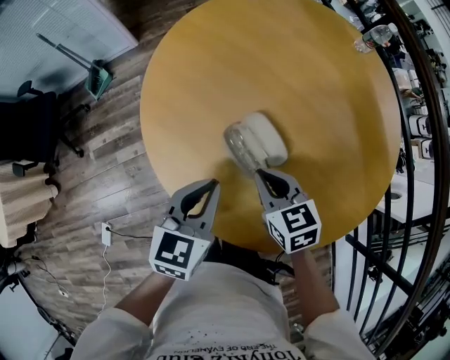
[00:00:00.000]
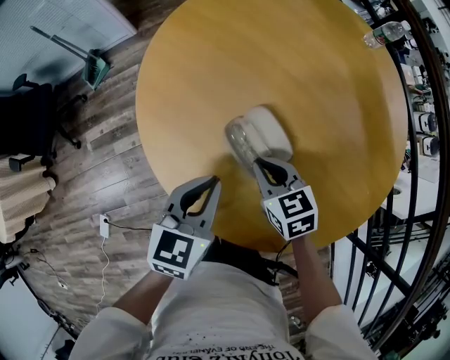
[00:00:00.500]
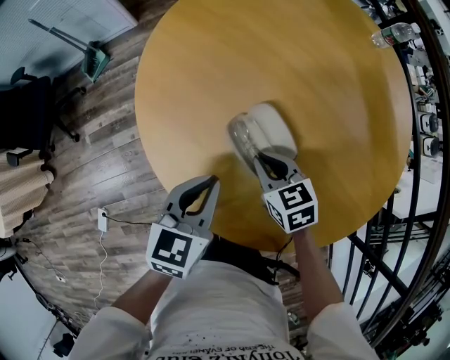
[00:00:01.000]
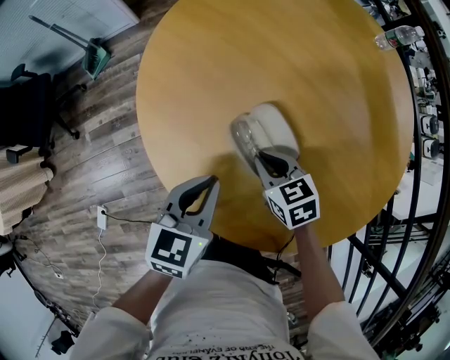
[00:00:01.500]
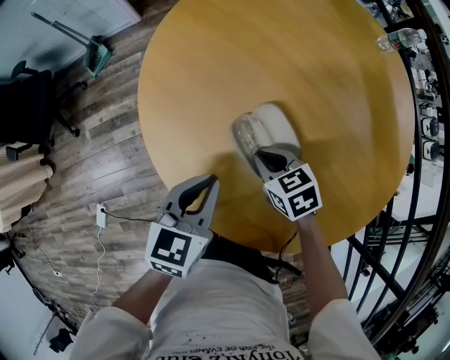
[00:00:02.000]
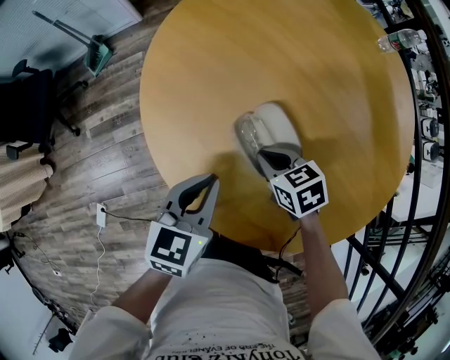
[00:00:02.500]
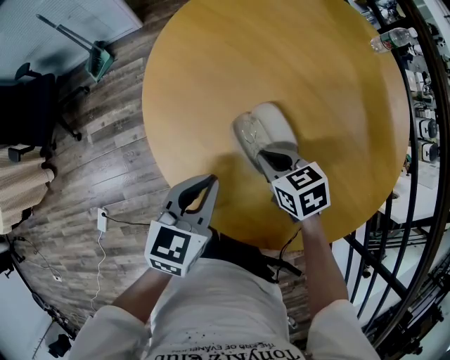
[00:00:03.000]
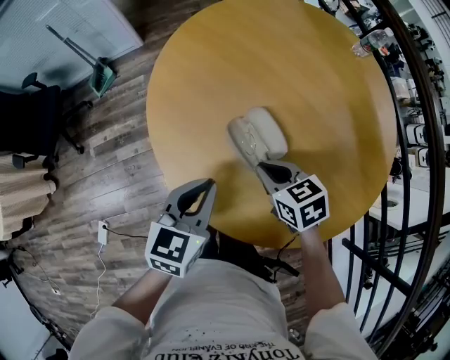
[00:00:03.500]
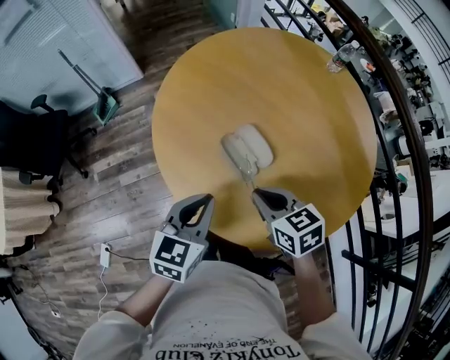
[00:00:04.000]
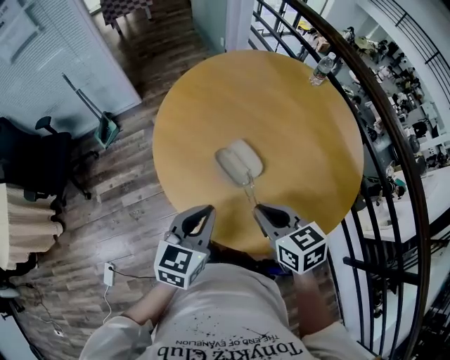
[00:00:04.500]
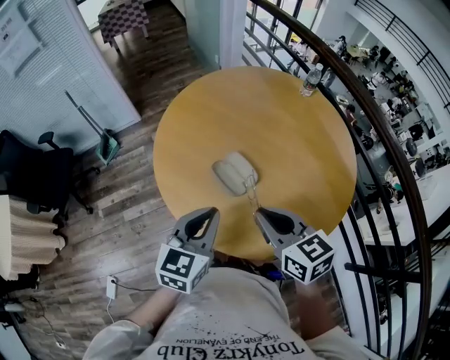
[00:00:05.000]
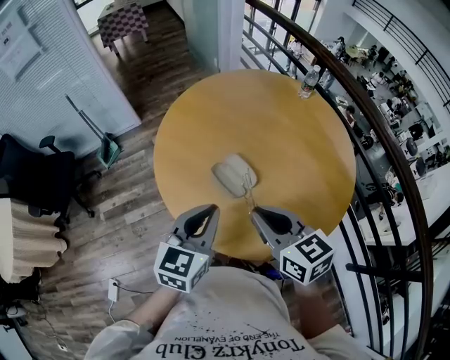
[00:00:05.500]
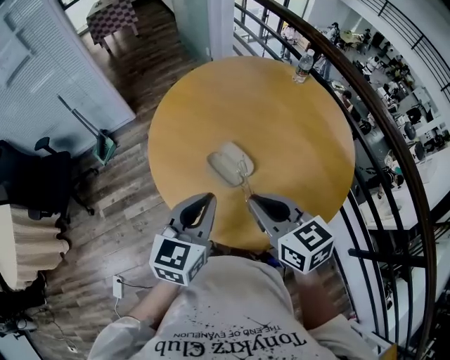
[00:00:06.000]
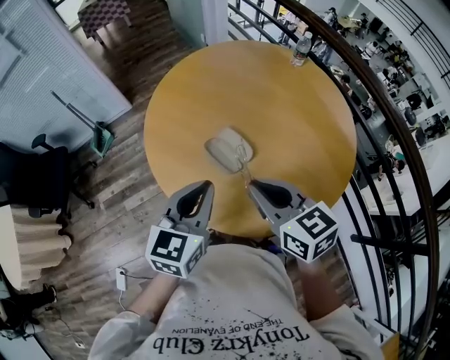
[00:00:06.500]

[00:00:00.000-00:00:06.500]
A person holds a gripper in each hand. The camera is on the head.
00:00:00.000 to 00:00:02.000: The right gripper moves downward, about 10 cm.
00:00:02.000 to 00:00:04.500: The left gripper heads backward and upward, covering roughly 15 cm; the right gripper is displaced upward and backward by some 25 cm, and turns by about 30 degrees.
00:00:04.500 to 00:00:06.500: The two grippers go roughly 10 cm upward.

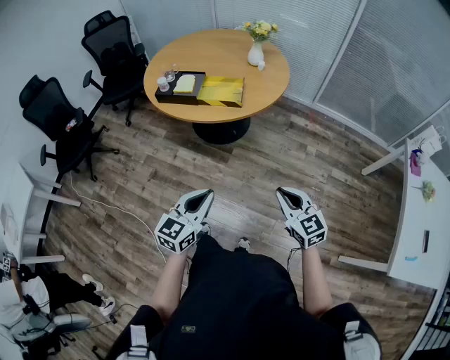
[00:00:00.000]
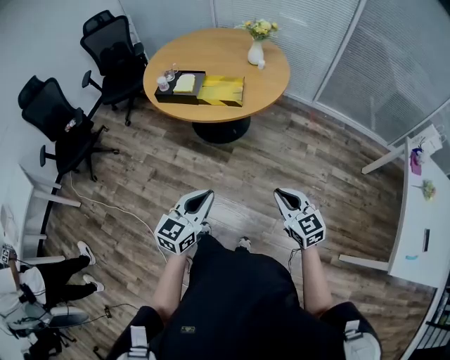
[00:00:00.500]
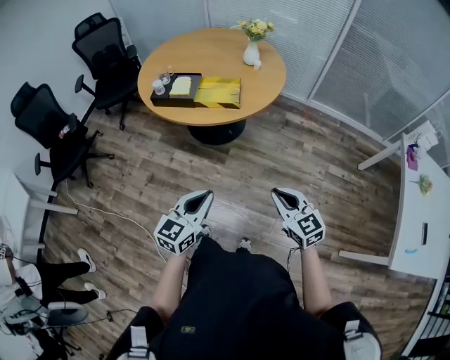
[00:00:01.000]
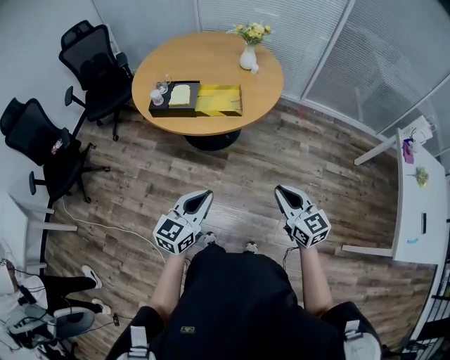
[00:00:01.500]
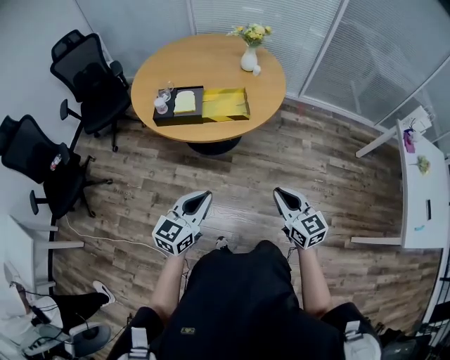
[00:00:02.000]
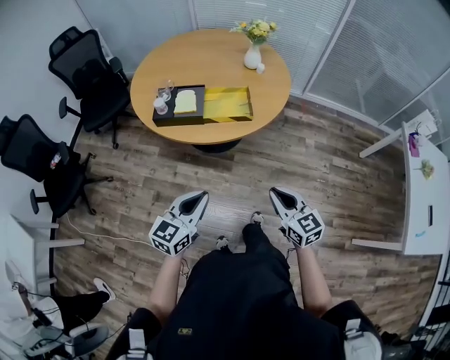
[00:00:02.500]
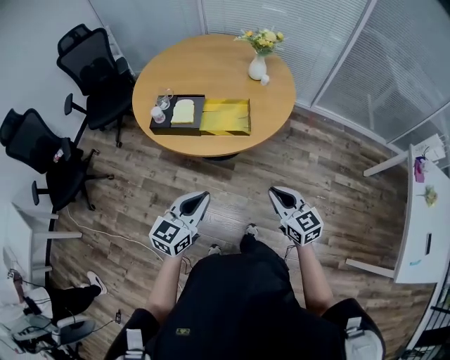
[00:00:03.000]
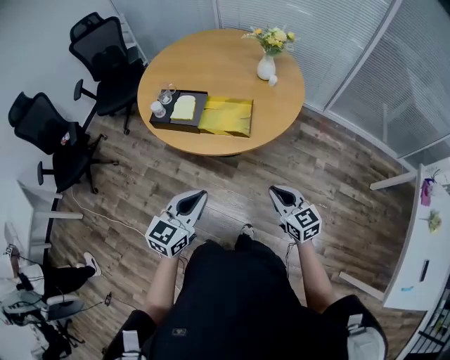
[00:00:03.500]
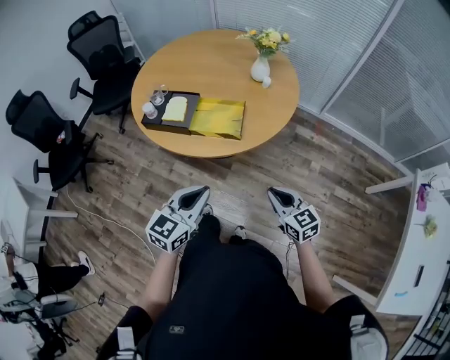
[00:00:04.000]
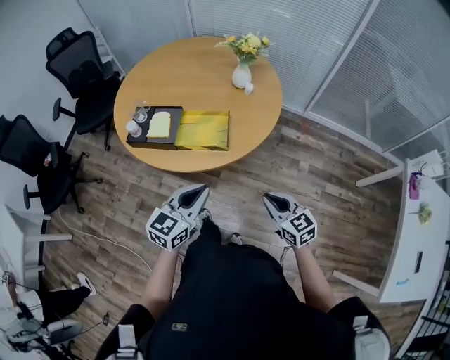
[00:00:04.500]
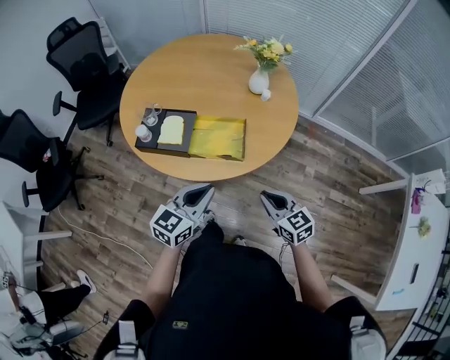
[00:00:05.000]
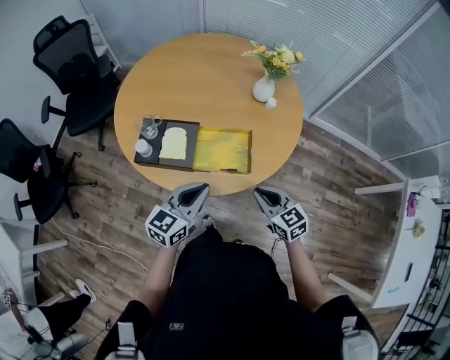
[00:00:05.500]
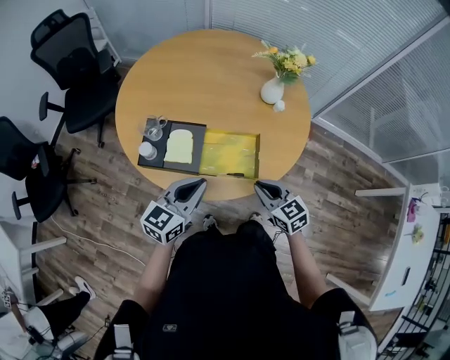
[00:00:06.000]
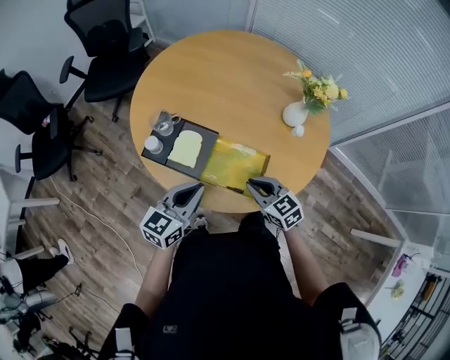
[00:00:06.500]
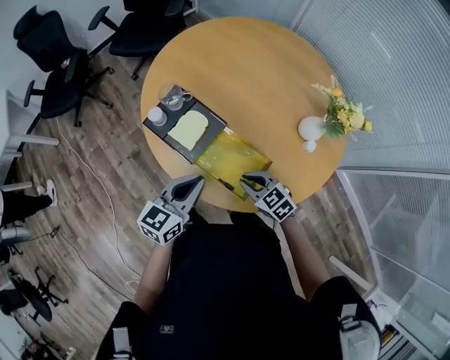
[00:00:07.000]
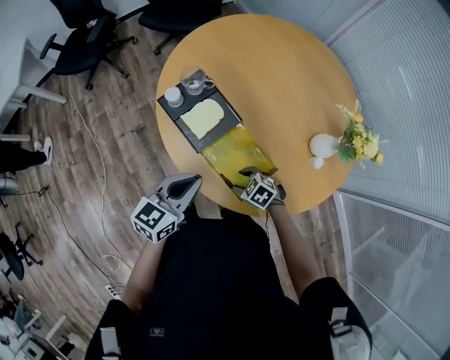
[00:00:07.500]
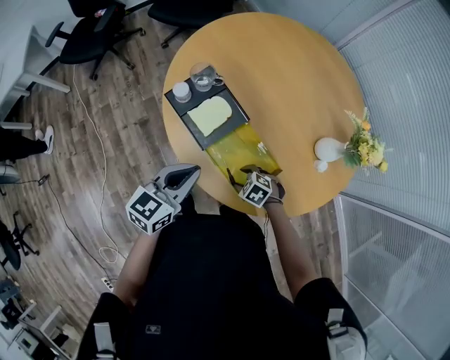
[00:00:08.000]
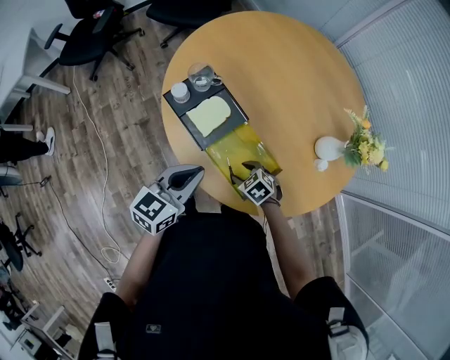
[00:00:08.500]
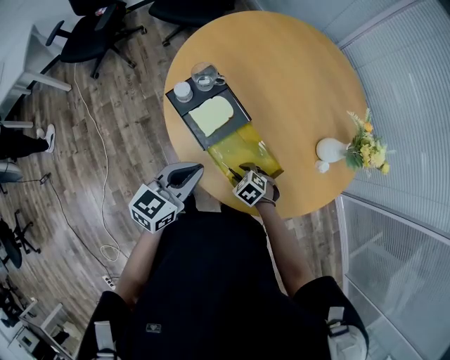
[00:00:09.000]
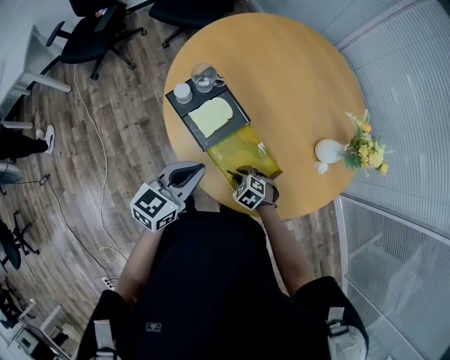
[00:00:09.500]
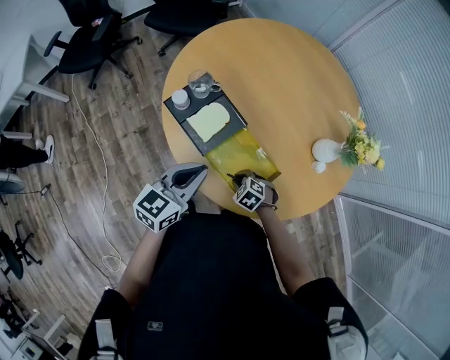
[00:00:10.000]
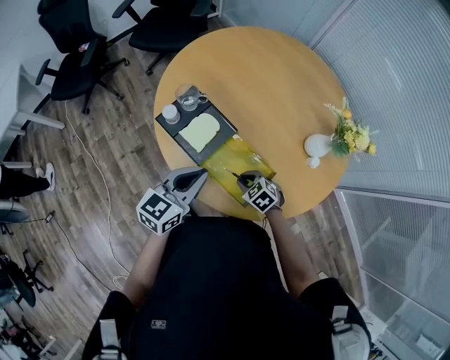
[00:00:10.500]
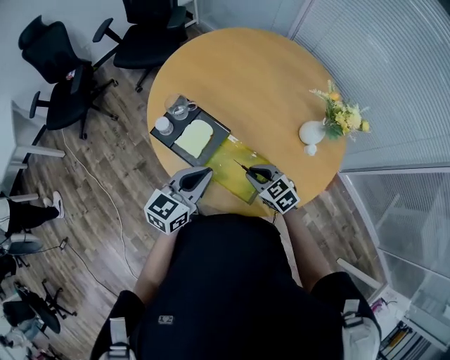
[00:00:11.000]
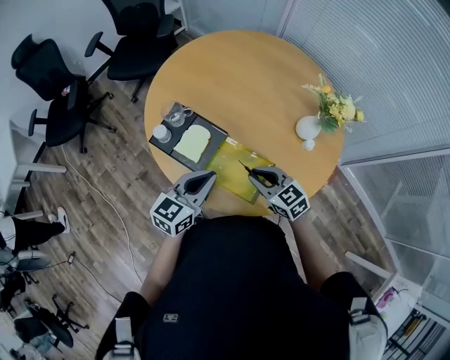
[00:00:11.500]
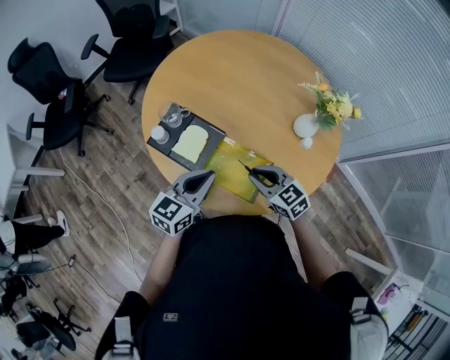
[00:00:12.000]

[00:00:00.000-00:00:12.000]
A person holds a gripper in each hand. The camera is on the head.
00:00:00.000 to 00:00:02.000: The grippers both shift to the left and forward by about 20 cm.
00:00:02.000 to 00:00:04.000: Both grippers move forward and to the right, roughly 20 cm.
00:00:04.000 to 00:00:06.000: Both grippers move forward and to the left, roughly 25 cm.
00:00:06.000 to 00:00:08.000: The left gripper turns by about 40 degrees; the right gripper is displaced downward by some 20 cm, points its fingers approximately 40 degrees further downward, and opens.
00:00:08.000 to 00:00:10.000: The right gripper closes up.
00:00:10.000 to 00:00:12.000: The right gripper shifts approximately 20 cm upward, and tips its fingers upward by roughly 40 degrees.

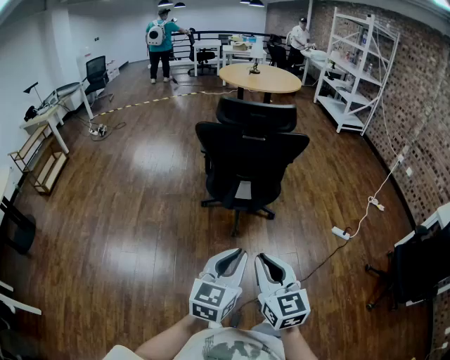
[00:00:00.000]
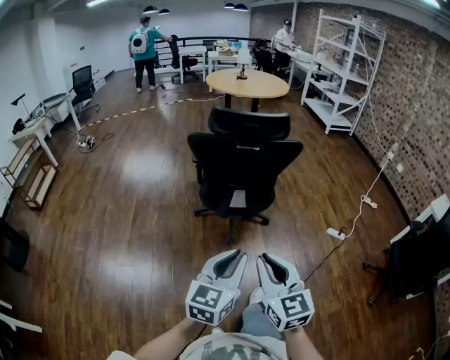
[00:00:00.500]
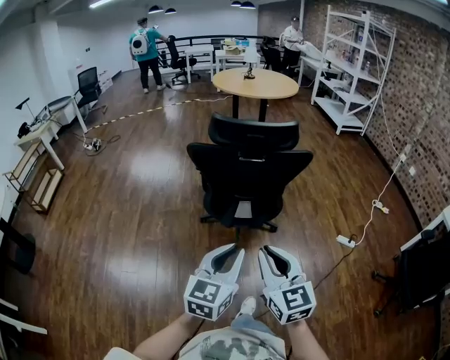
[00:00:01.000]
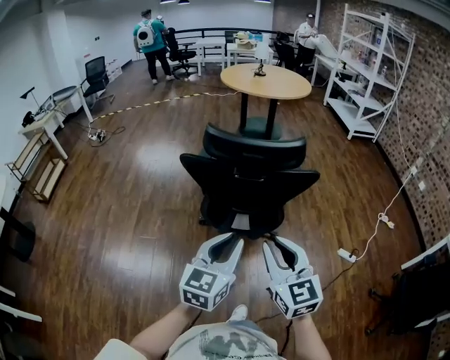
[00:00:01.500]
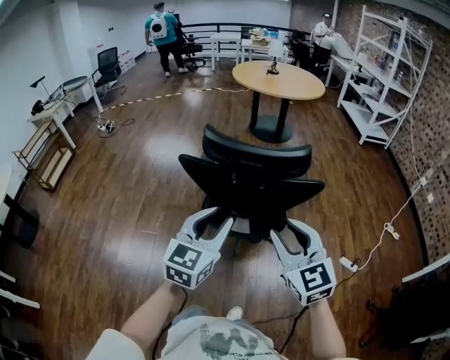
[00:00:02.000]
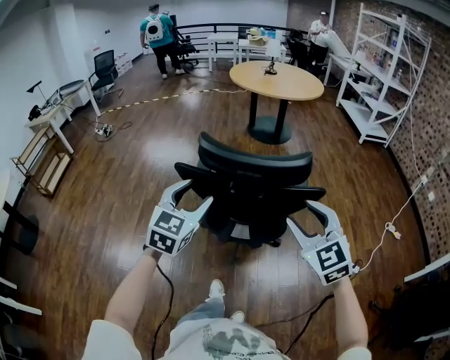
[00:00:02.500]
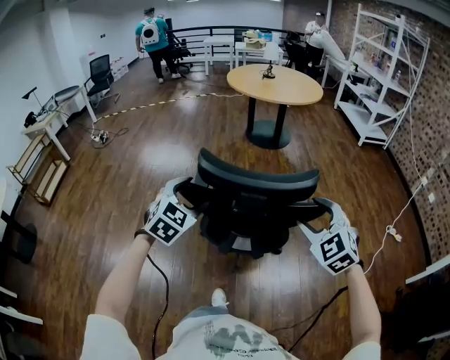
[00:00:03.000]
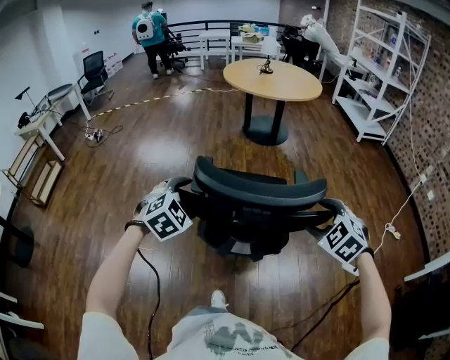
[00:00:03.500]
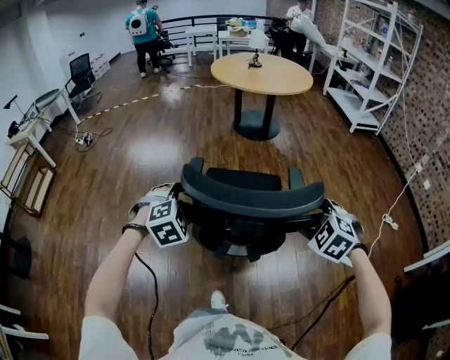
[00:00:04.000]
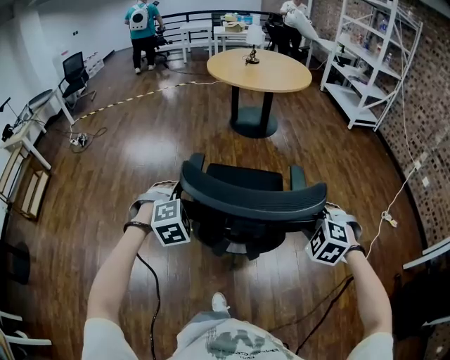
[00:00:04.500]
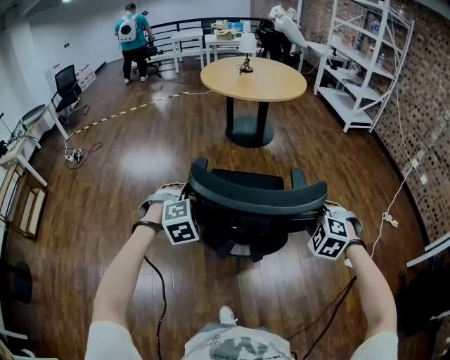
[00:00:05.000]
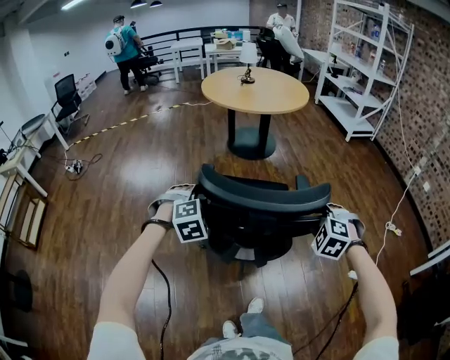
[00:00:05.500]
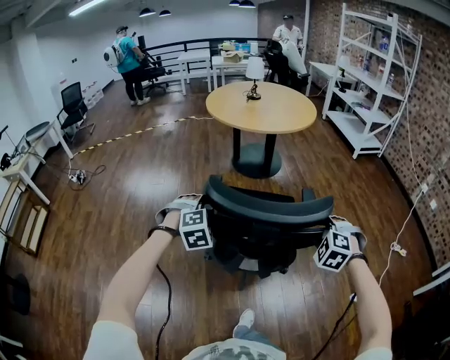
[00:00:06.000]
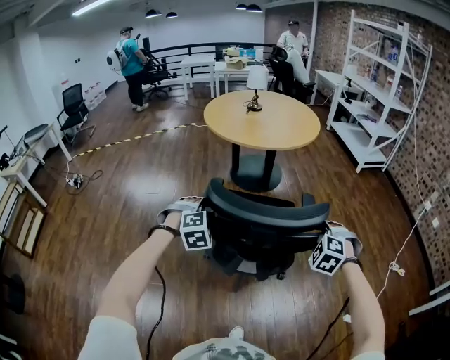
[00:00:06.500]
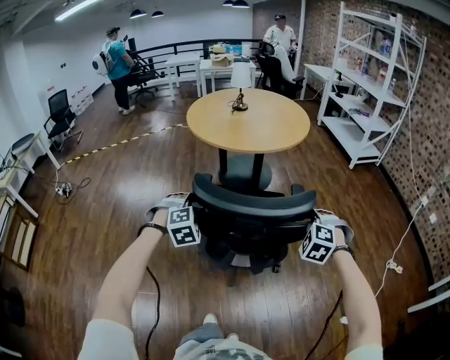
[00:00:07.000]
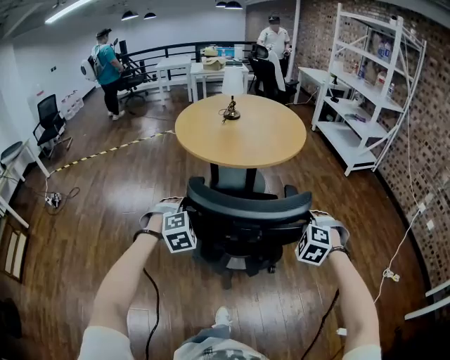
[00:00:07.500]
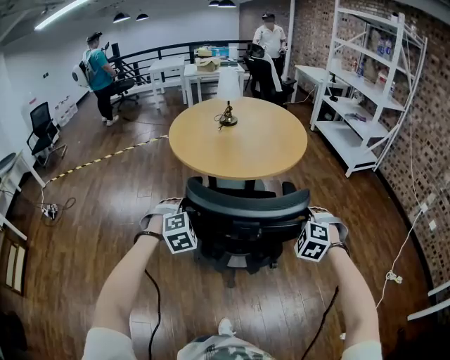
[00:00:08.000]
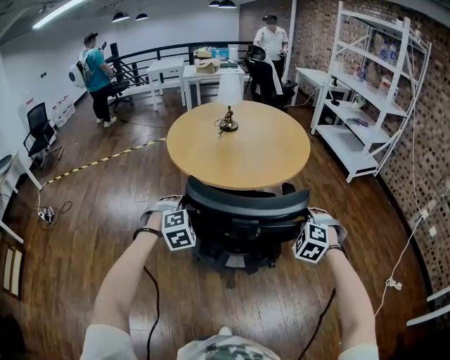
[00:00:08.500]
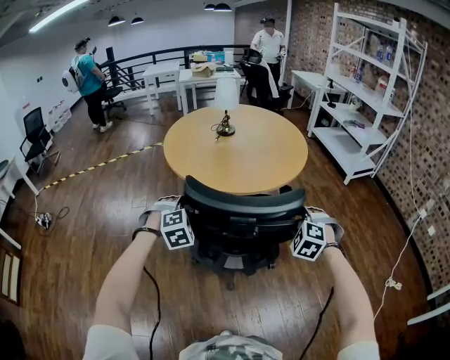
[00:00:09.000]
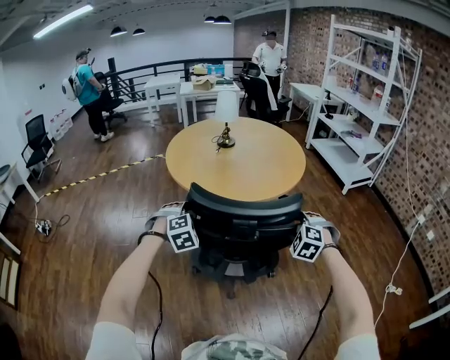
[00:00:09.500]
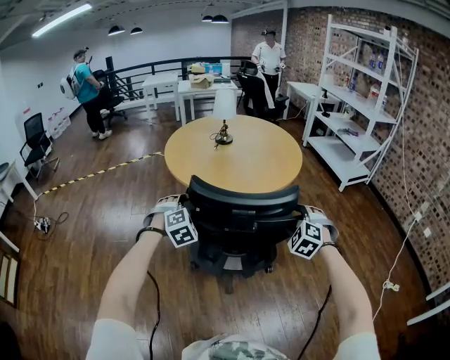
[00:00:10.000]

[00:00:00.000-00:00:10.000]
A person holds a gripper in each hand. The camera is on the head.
00:00:00.000 to 00:00:02.000: Both grippers move forward, approximately 30 cm. The right gripper rotates some 20 degrees, and opens its fingers.
00:00:02.000 to 00:00:04.000: The left gripper goes some 25 cm forward, downward and to the left, tilts its fingers about 40 degrees downward, and opens its fingers, while the right gripper moves forward and downward, some 20 cm, angles its fingers downward, by approximately 40 degrees, and opens up.
00:00:04.000 to 00:00:06.000: The grippers both shift forward by some 25 cm. The right gripper closes its fingers.
00:00:06.000 to 00:00:08.000: The pair of grippers is taken forward, approximately 40 cm.
00:00:08.000 to 00:00:10.000: Both grippers travel together forward, roughly 10 cm. The right gripper opens.
